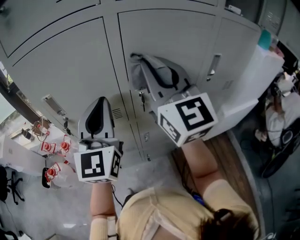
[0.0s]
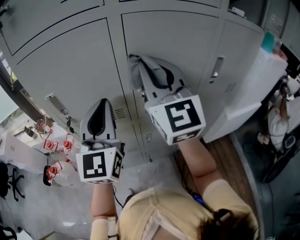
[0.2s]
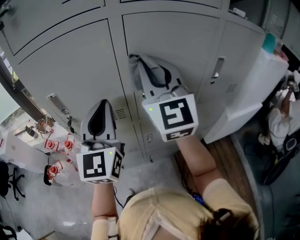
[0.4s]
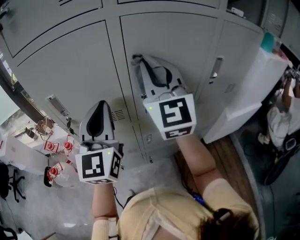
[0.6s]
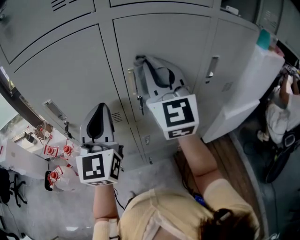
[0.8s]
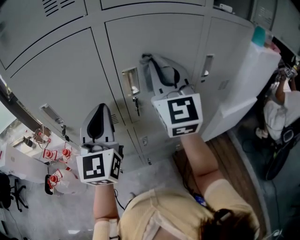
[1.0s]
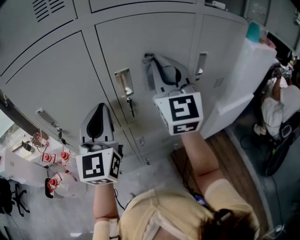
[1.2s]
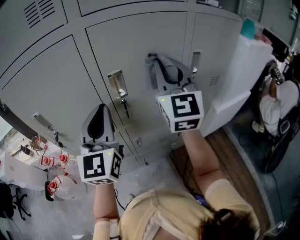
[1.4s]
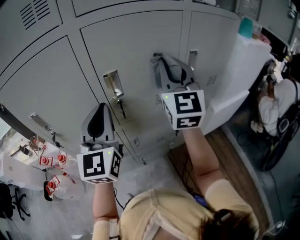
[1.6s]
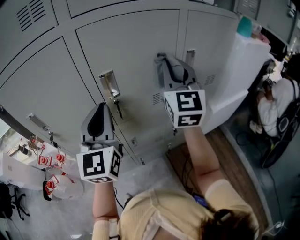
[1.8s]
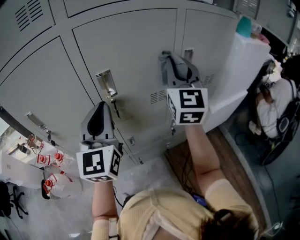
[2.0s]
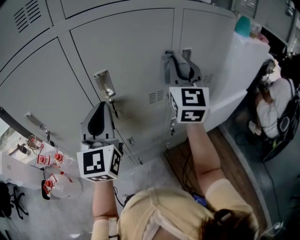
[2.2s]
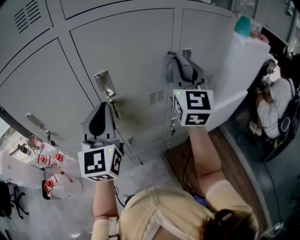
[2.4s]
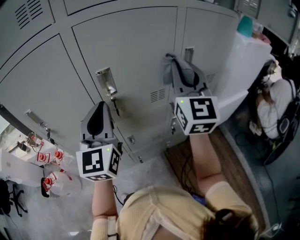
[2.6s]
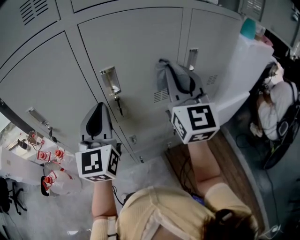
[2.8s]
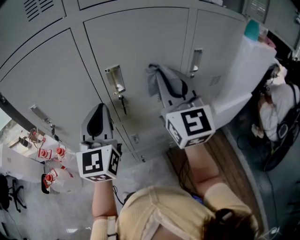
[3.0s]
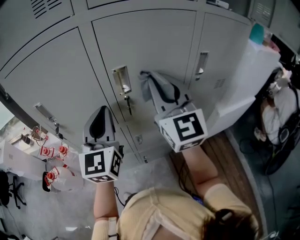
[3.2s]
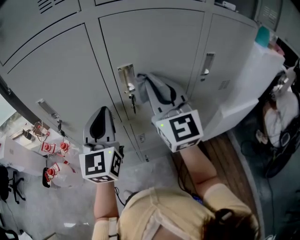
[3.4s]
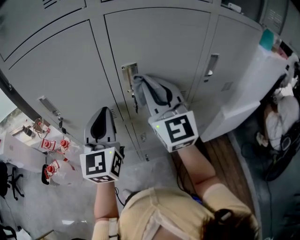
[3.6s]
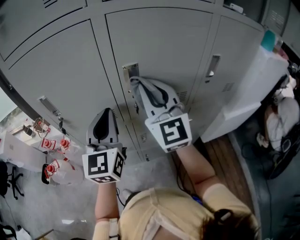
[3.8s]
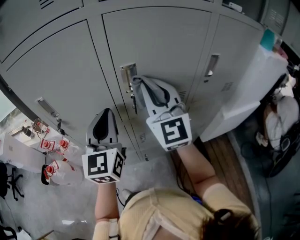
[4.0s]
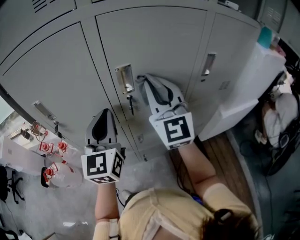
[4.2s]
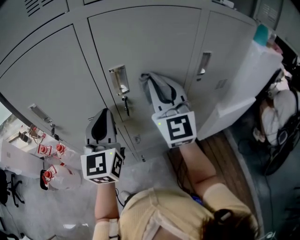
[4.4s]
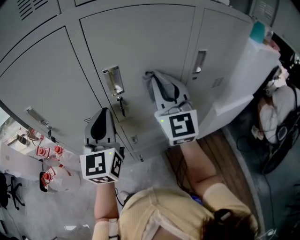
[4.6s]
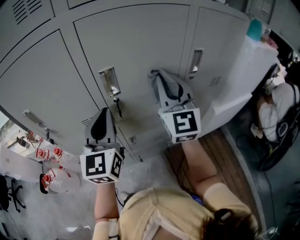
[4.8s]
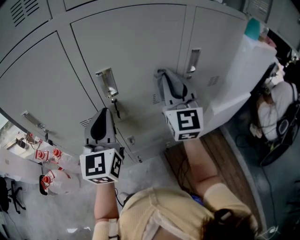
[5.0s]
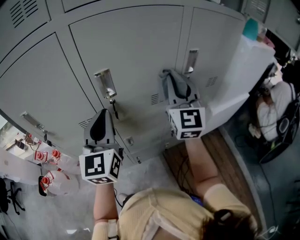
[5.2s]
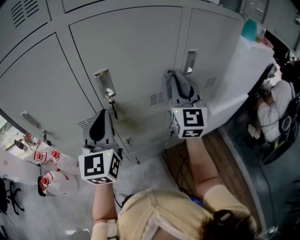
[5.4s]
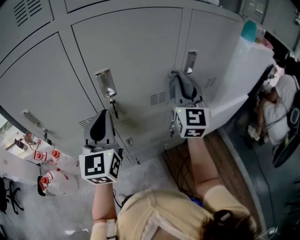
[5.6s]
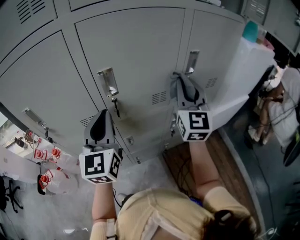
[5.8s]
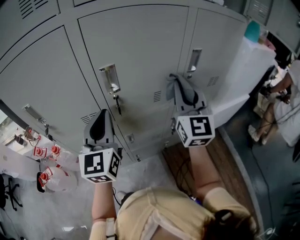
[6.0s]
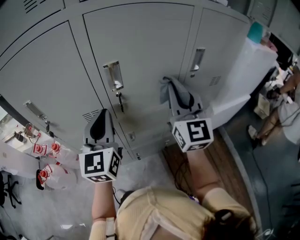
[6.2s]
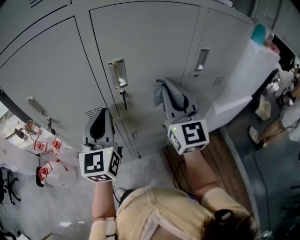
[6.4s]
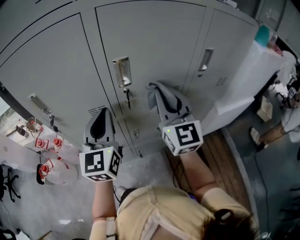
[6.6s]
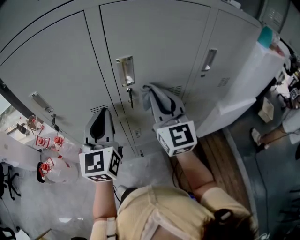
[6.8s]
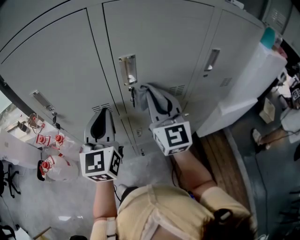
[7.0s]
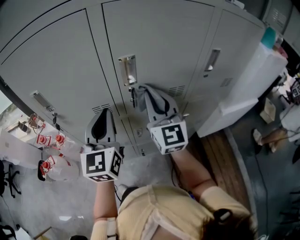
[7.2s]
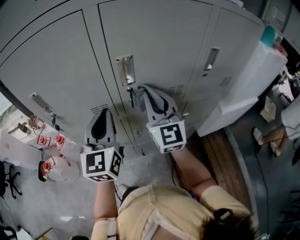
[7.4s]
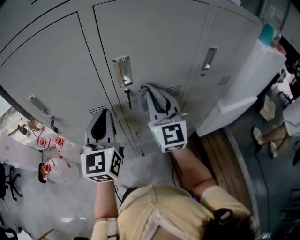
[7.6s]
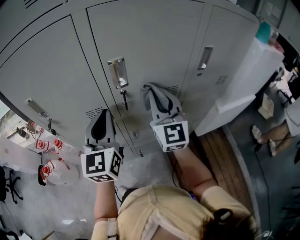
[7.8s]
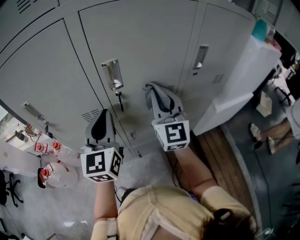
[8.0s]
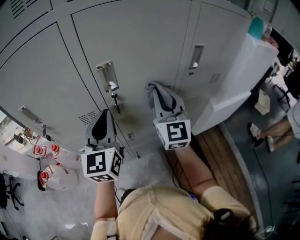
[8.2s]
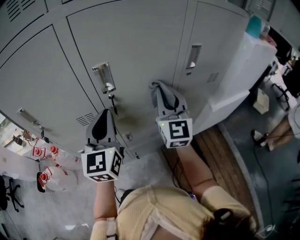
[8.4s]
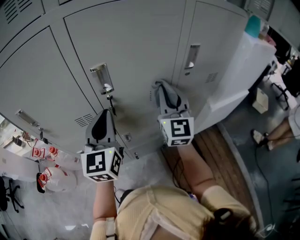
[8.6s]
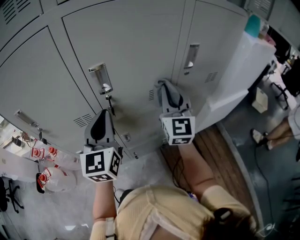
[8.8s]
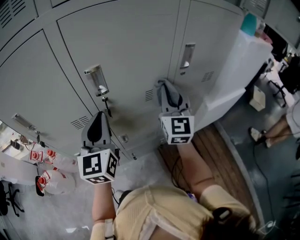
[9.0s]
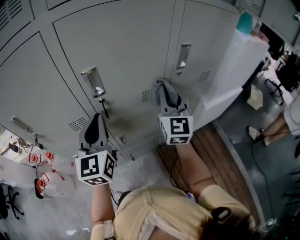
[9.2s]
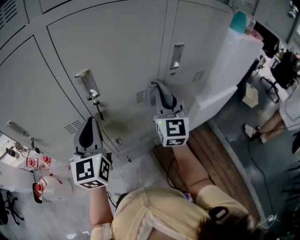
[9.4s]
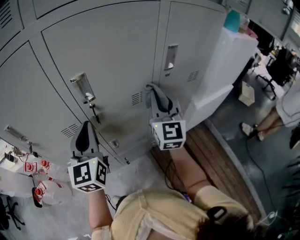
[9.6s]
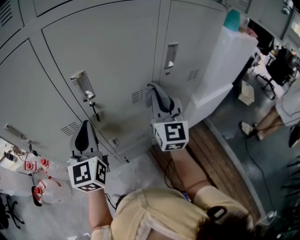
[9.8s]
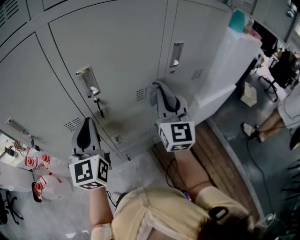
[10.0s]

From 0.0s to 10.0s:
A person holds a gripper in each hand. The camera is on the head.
From 0.0s to 1.4s: The left gripper goes approximately 5 cm to the right. Meanwhile the right gripper shifts approximately 10 cm to the right, and swivels roughly 20 degrees.
From 2.8s to 4.2s: The right gripper goes about 10 cm to the left.
From 4.2s to 5.8s: The right gripper moves to the right, roughly 15 cm, and rotates about 20 degrees.
From 5.8s to 7.2s: The left gripper travels to the left by some 5 cm, while the right gripper is displaced to the left by approximately 20 cm, and changes its angle by about 20 degrees.
From 7.2s to 8.6s: The right gripper travels to the right by some 15 cm, while the left gripper heads to the right, covering approximately 5 cm.
From 8.6s to 10.0s: There are only small adjustments of the grippers.

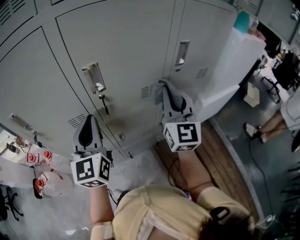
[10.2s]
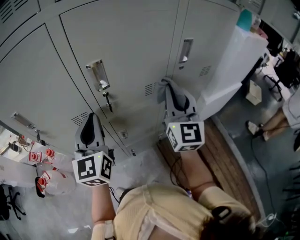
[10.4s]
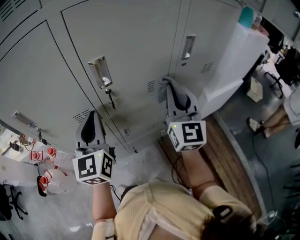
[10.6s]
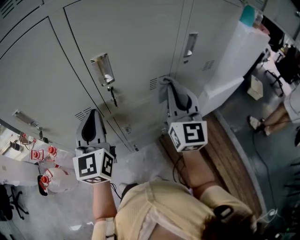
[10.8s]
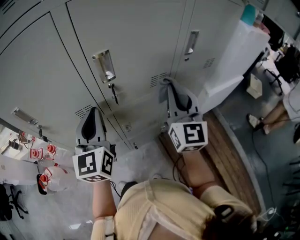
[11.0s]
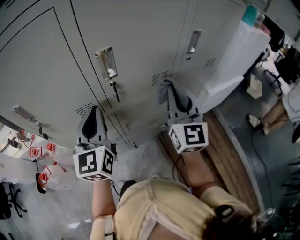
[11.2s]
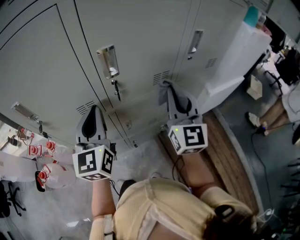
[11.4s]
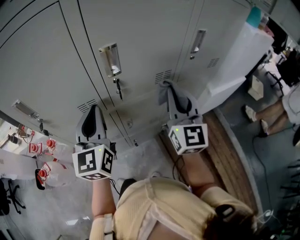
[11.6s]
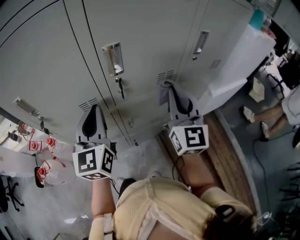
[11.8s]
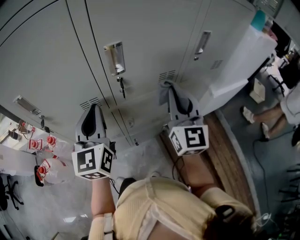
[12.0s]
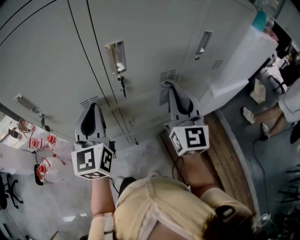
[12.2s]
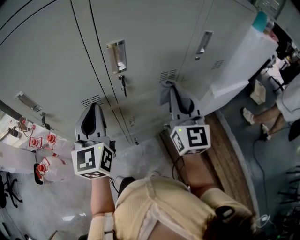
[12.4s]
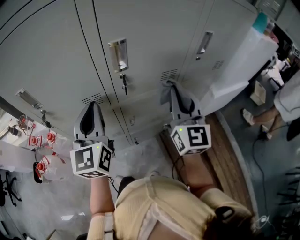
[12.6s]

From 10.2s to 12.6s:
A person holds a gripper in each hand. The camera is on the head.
From 10.2s to 11.4s: The right gripper shifts by approximately 5 cm.
From 11.4s to 12.6s: The grippers make only small movements.

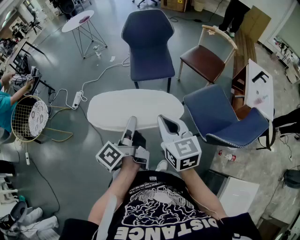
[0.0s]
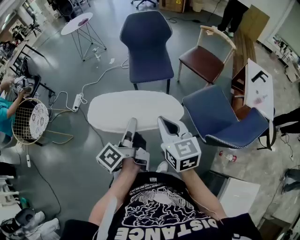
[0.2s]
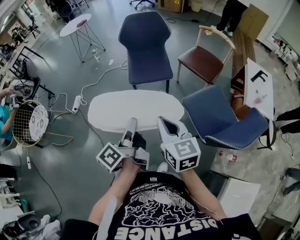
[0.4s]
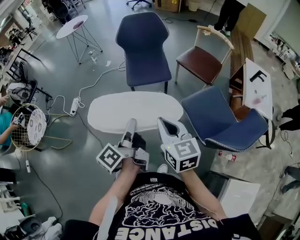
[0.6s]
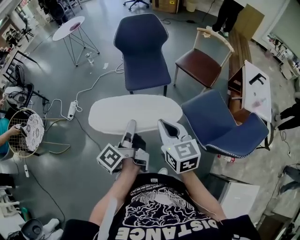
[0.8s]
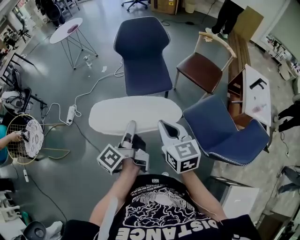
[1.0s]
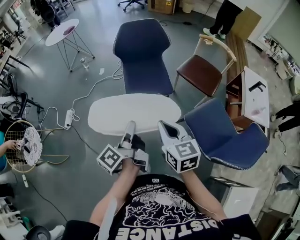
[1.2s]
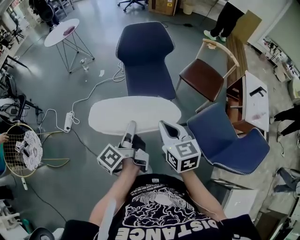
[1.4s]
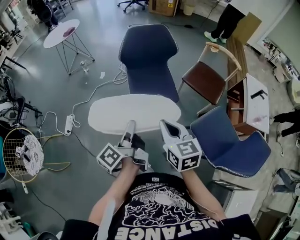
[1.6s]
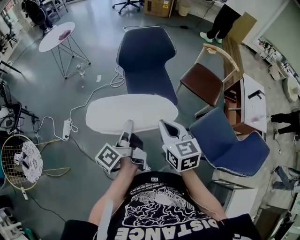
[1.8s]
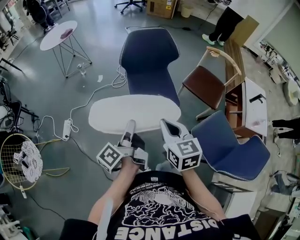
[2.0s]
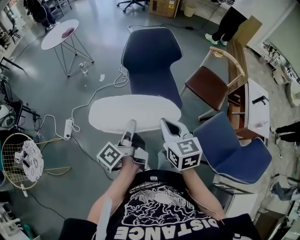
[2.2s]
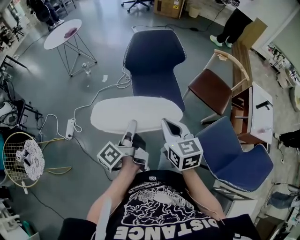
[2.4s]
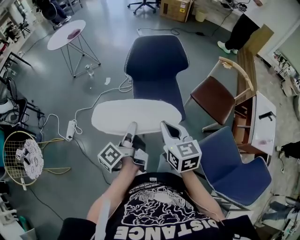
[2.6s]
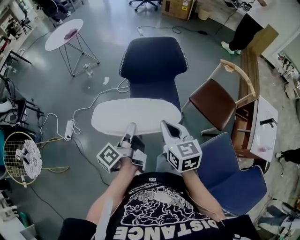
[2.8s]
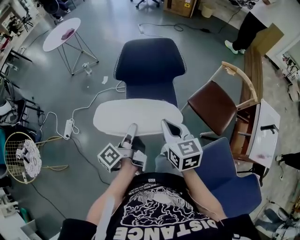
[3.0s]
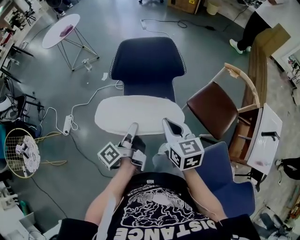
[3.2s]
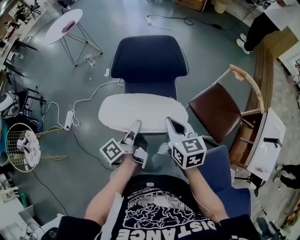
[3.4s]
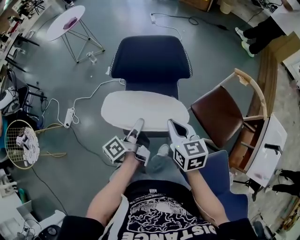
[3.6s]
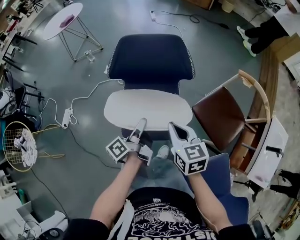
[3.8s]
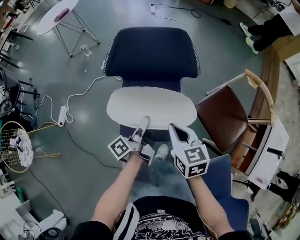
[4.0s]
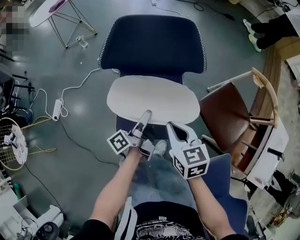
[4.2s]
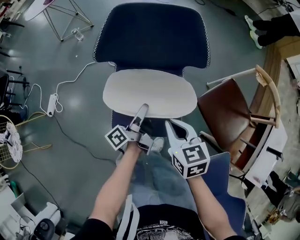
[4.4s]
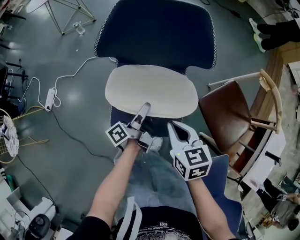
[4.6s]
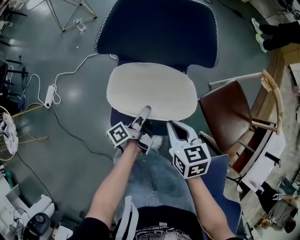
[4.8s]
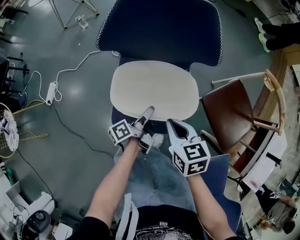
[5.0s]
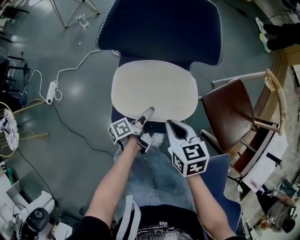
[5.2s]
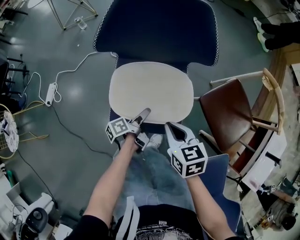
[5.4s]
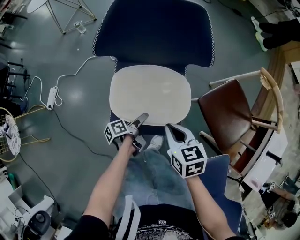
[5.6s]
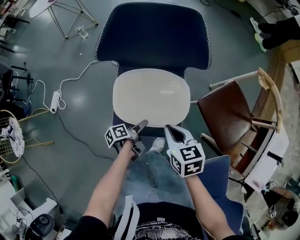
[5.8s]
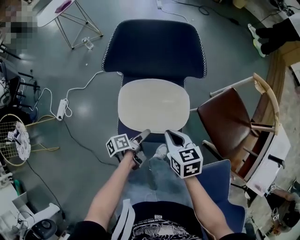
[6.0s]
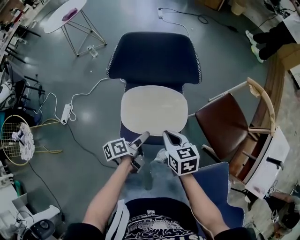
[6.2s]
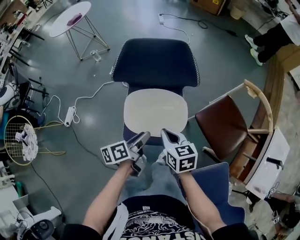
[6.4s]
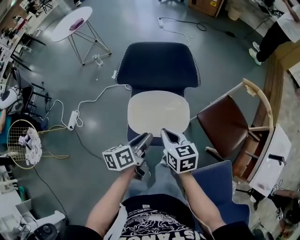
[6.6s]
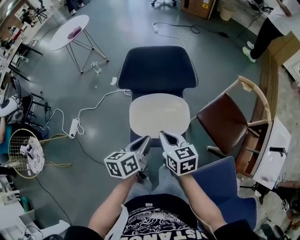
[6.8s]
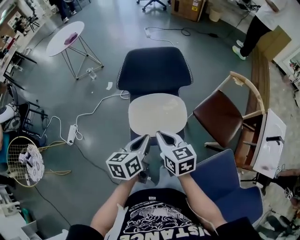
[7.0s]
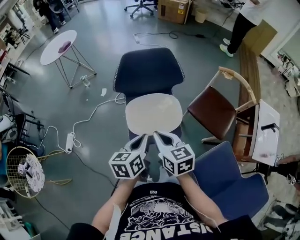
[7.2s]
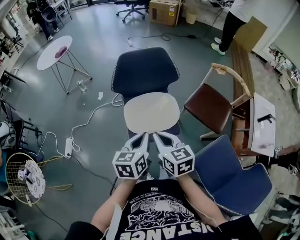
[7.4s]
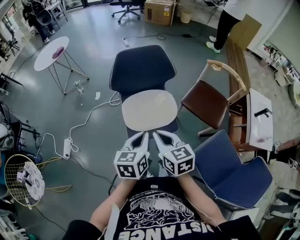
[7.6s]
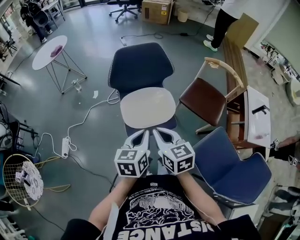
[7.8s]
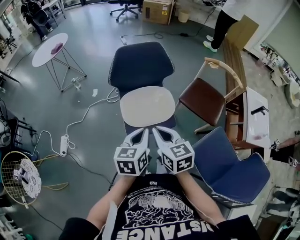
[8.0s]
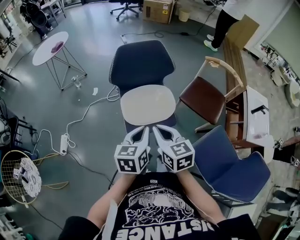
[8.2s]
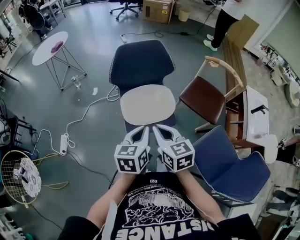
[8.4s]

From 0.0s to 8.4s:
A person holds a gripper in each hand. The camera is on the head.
From 0.0s to 1.4s: The right gripper changes place by approximately 20 cm.
From 1.4s to 2.8s: The right gripper changes place by roughly 20 cm.
From 2.8s to 4.2s: The right gripper moves downward, roughly 15 cm.
From 4.2s to 5.6s: The right gripper moves downward, roughly 5 cm.
From 5.6s to 7.0s: The right gripper heads upward, covering about 15 cm.
From 7.0s to 8.4s: The right gripper moves roughly 10 cm.

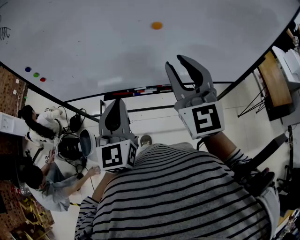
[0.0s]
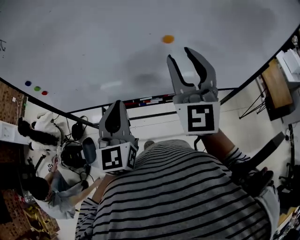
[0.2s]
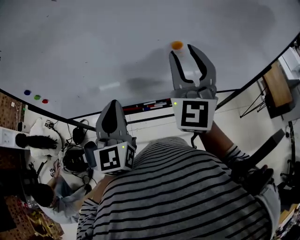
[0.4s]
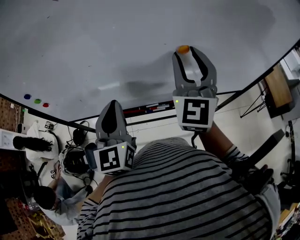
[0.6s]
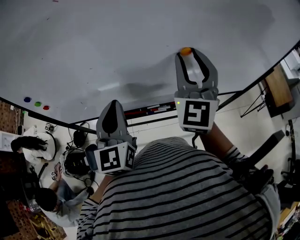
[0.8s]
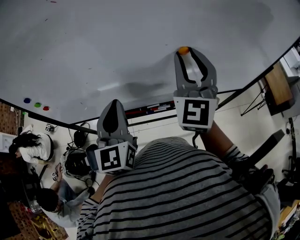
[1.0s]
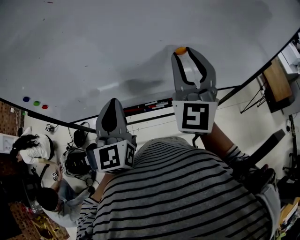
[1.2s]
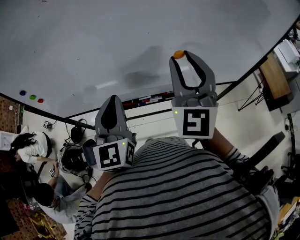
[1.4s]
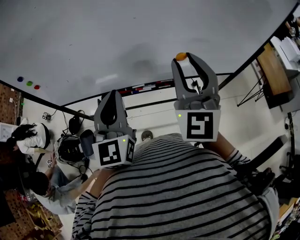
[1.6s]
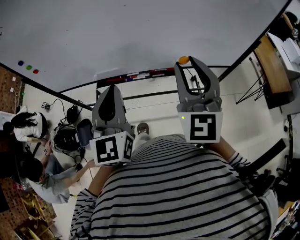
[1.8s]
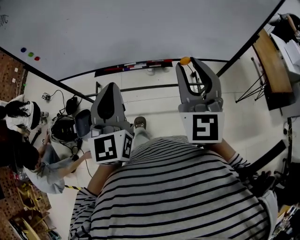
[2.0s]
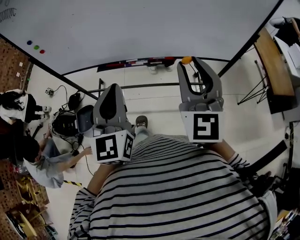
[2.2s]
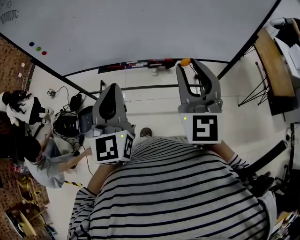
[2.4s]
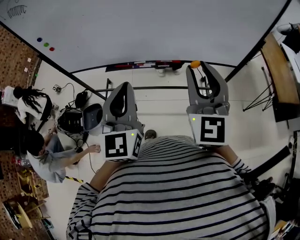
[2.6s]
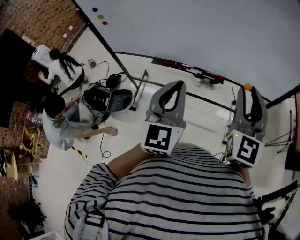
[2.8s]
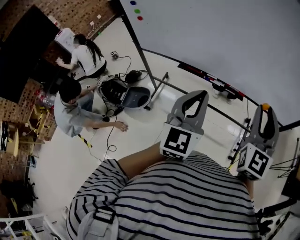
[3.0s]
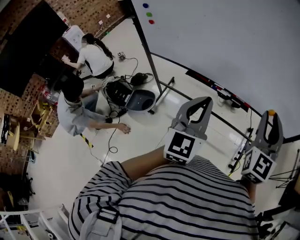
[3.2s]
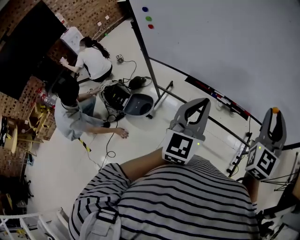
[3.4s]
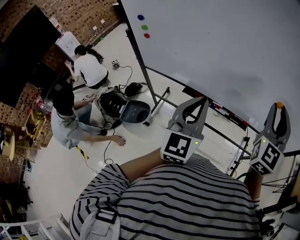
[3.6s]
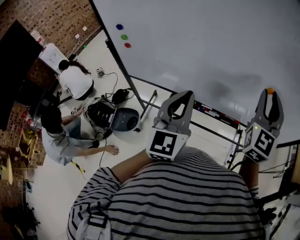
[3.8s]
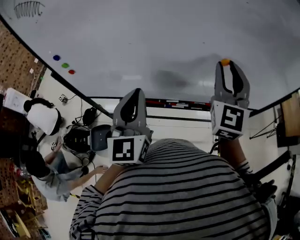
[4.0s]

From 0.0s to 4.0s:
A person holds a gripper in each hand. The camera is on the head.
From 0.0s to 1.4s: The left gripper heads forward, covering about 5 cm. The right gripper rotates roughly 20 degrees.
From 1.4s to 2.6s: The right gripper moves backward, to the right and downward, about 20 cm, and turns by some 20 degrees, while the left gripper is displaced backward and to the right by about 20 cm.
From 2.6s to 4.0s: The right gripper shifts approximately 20 cm forward. Meanwhile the left gripper shifts roughly 25 cm forward and to the left.
